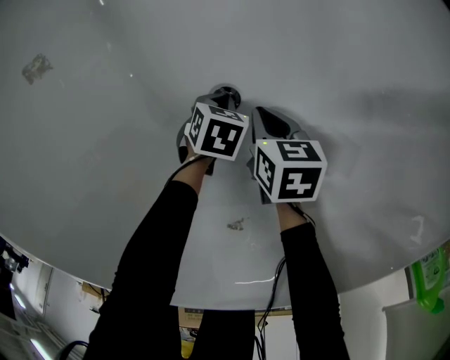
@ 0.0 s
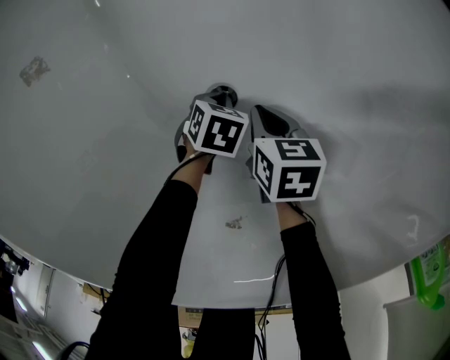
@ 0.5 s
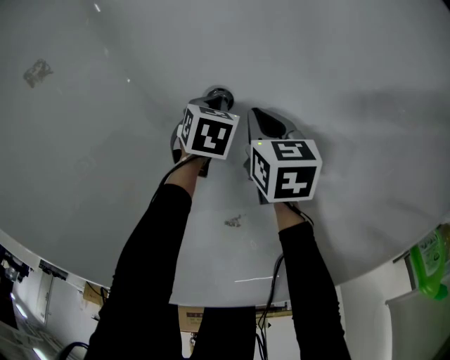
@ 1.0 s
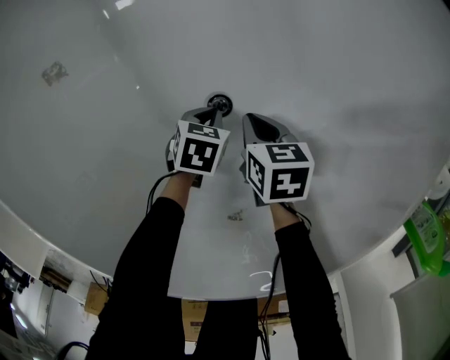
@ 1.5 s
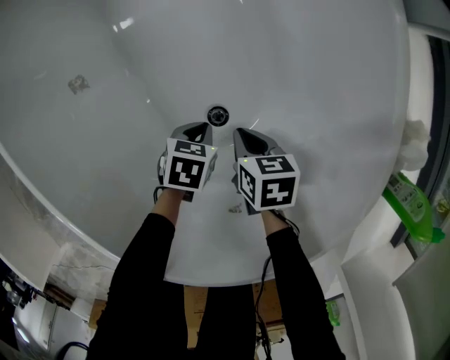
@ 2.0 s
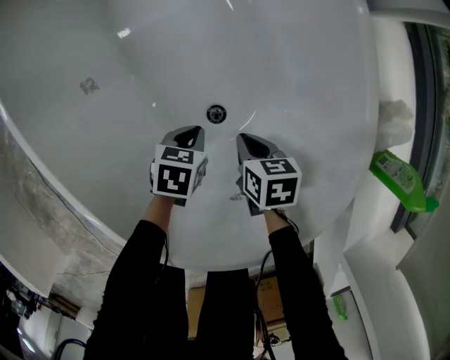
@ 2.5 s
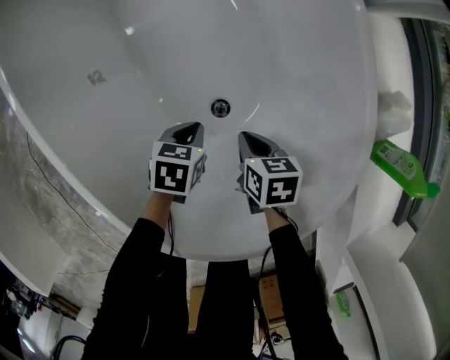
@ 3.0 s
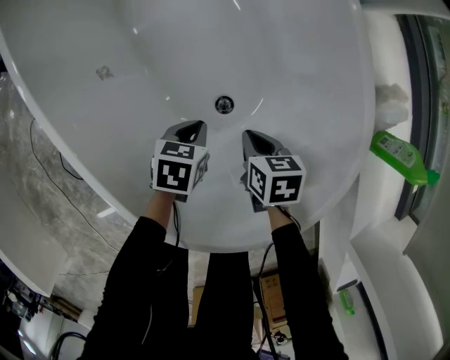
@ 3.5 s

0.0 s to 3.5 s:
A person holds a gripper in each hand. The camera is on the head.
0.0 to 2.0 s: The two grippers go some 15 cm upward.
2.0 to 3.5 s: Both grippers travel together upward, approximately 10 cm.

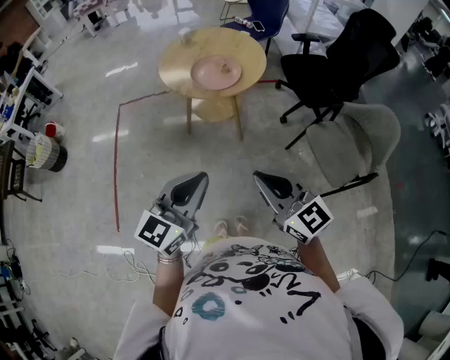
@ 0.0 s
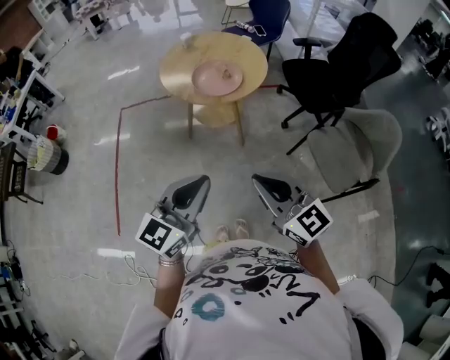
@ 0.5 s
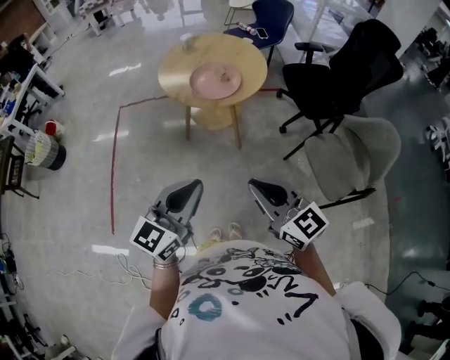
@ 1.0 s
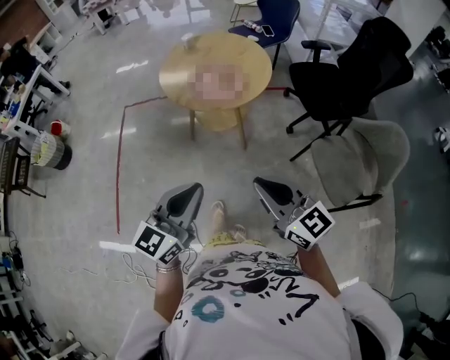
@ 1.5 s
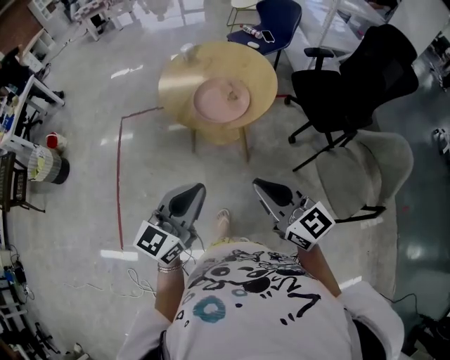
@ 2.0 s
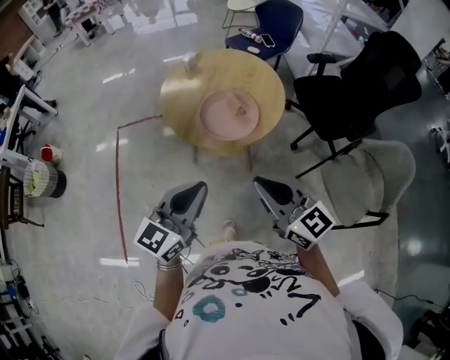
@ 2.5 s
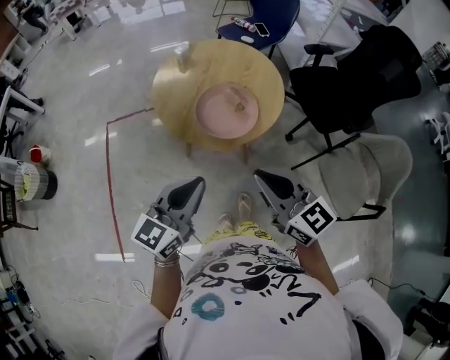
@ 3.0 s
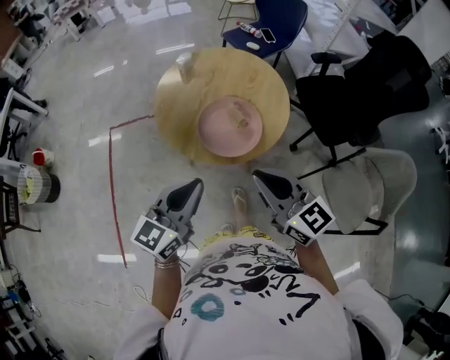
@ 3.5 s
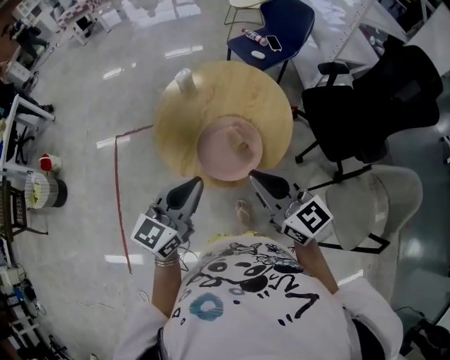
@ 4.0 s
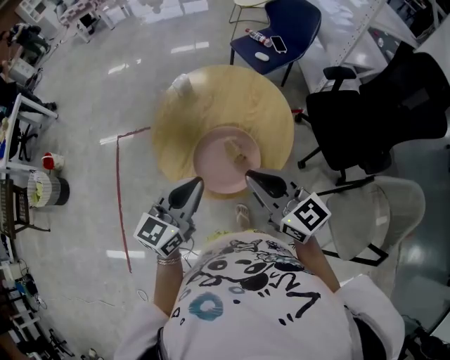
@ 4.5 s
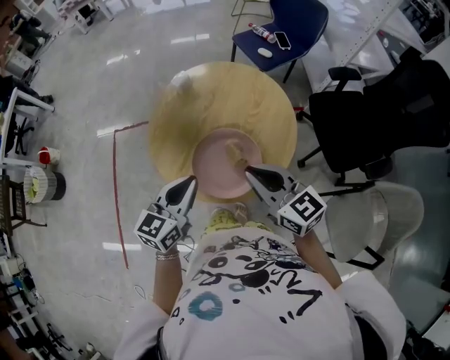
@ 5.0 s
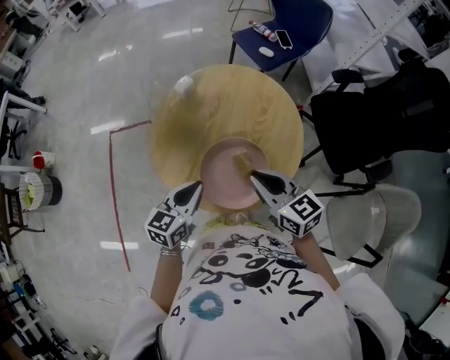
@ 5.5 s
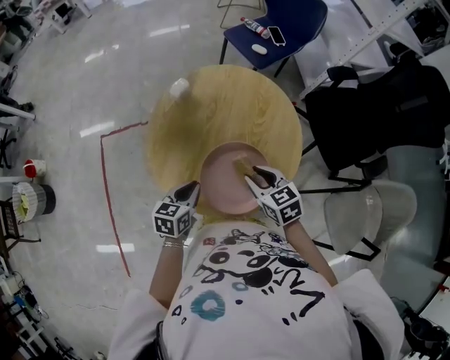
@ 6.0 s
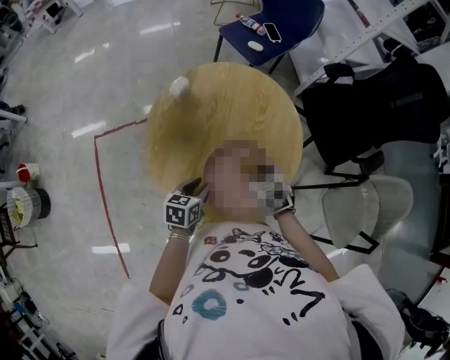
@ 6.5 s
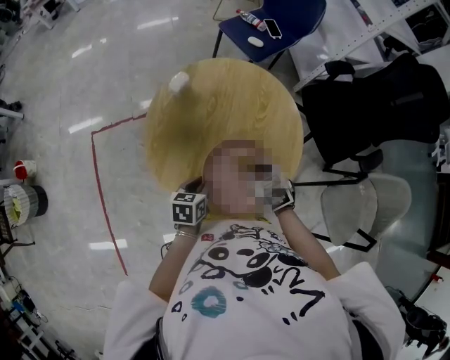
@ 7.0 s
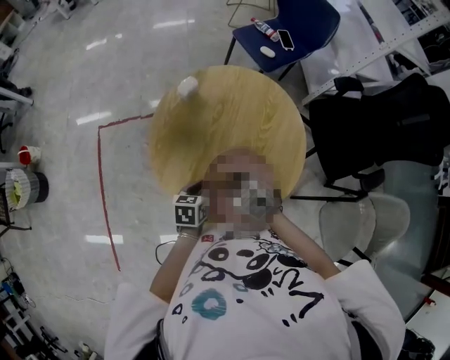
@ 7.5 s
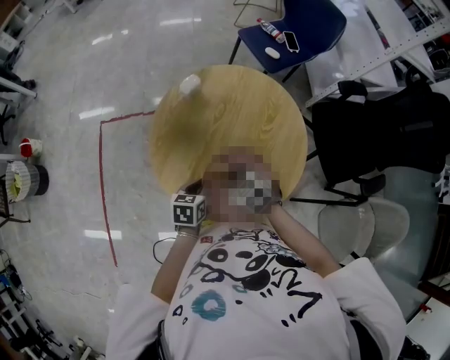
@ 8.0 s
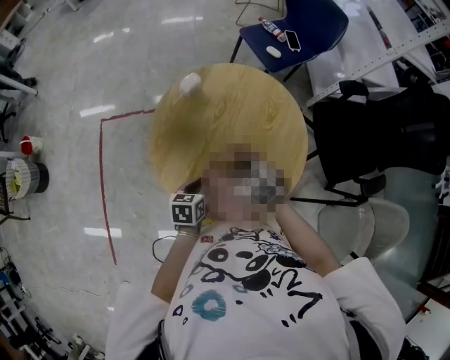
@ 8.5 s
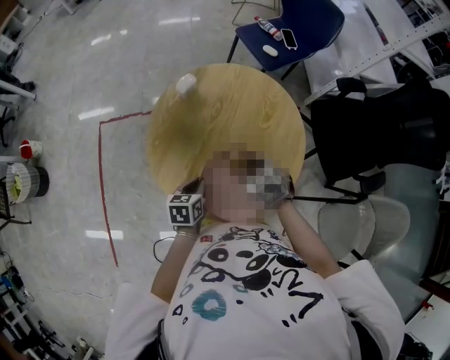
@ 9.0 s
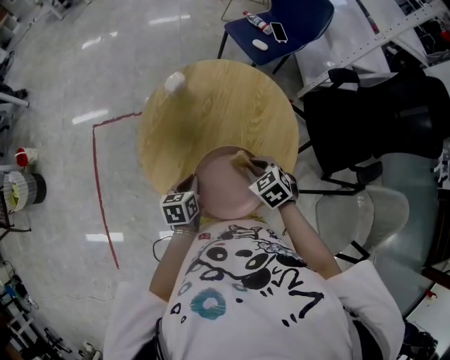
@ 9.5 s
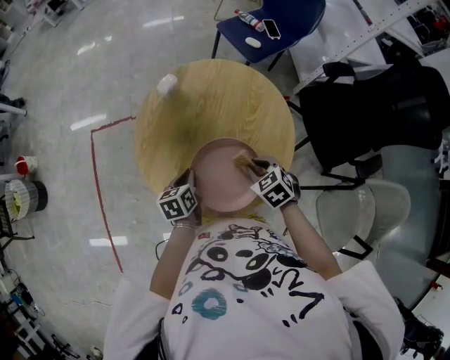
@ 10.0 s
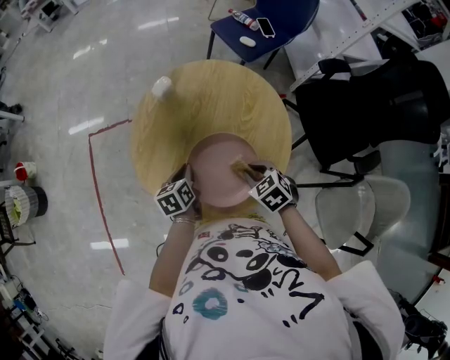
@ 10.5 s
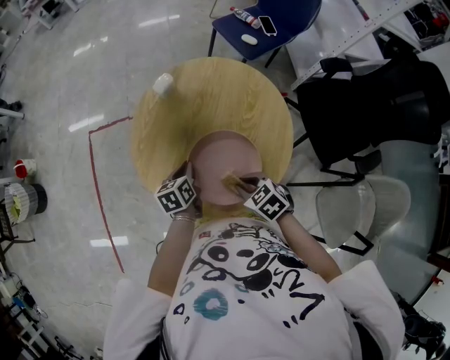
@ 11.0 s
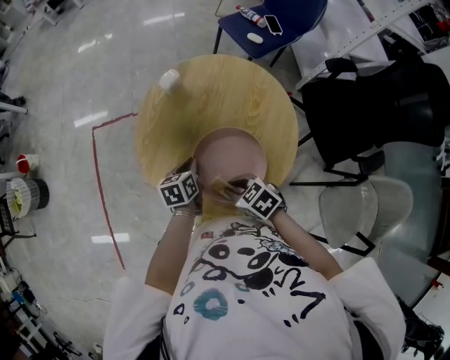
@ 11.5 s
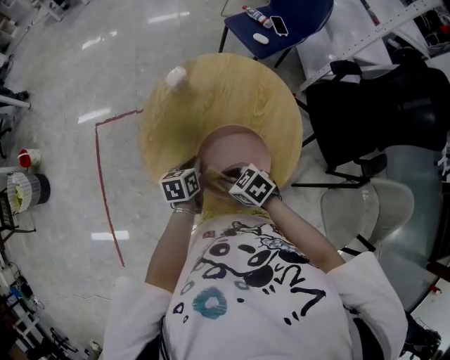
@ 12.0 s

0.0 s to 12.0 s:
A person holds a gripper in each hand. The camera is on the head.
0.0 to 2.0 s: The two grippers go approximately 15 cm forward.
2.0 to 4.0 s: The two grippers go about 30 cm forward.
4.0 to 6.0 s: Both grippers move downward and forward, some 25 cm. The left gripper points its fingers roughly 30 degrees further downward; the right gripper tilts its fingers some 40 degrees downward.
6.0 to 8.0 s: The right gripper ends up about 10 cm from where it was, and changes its angle by about 30 degrees. The left gripper moves downward, some 5 cm, and opens and closes again.
8.0 to 10.0 s: The right gripper goes roughly 10 cm to the right.
10.0 to 12.0 s: The right gripper moves to the left, approximately 15 cm, and turns by some 20 degrees.

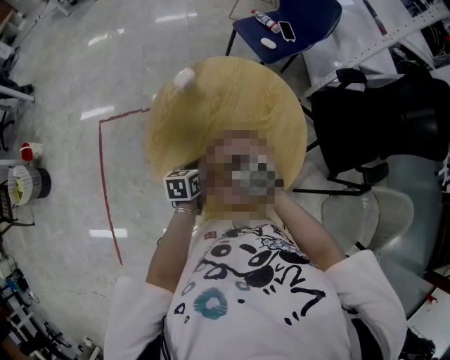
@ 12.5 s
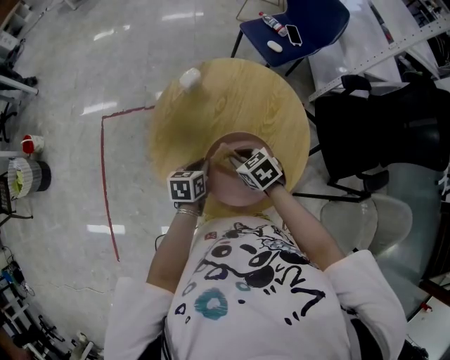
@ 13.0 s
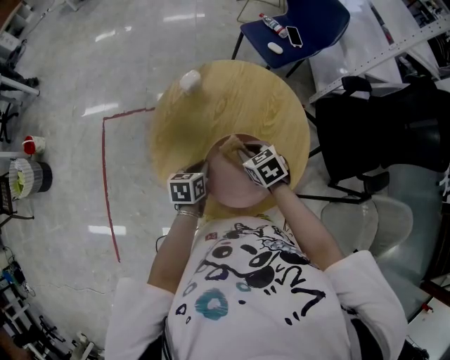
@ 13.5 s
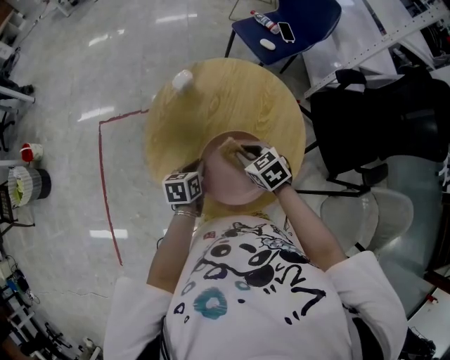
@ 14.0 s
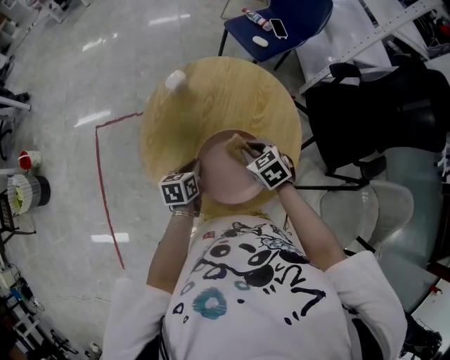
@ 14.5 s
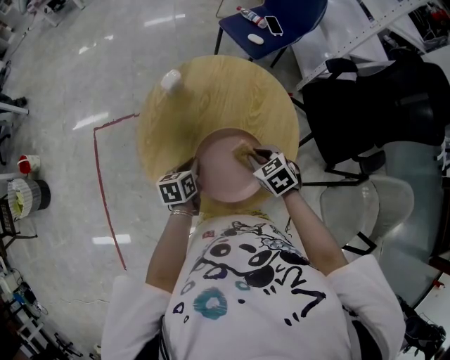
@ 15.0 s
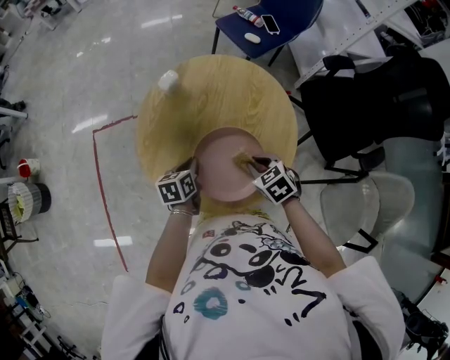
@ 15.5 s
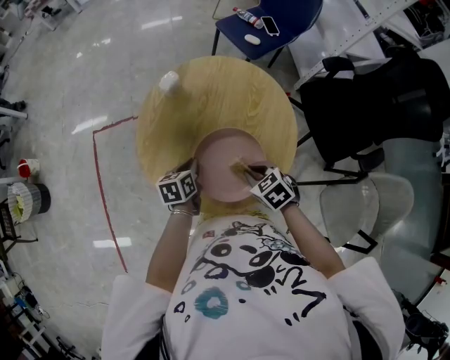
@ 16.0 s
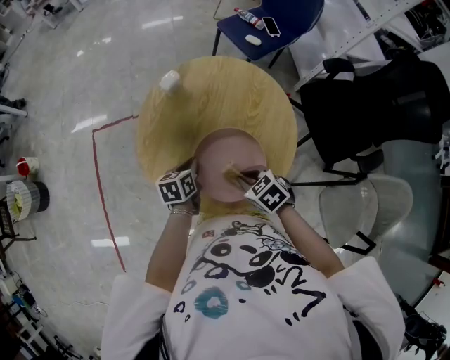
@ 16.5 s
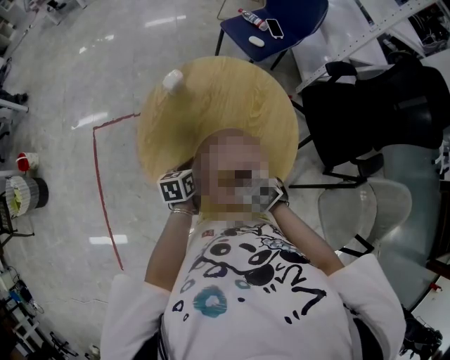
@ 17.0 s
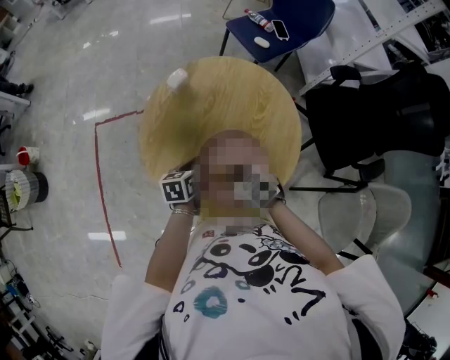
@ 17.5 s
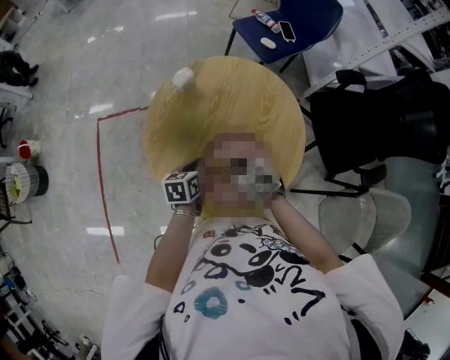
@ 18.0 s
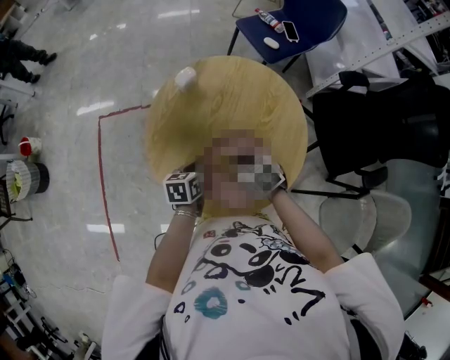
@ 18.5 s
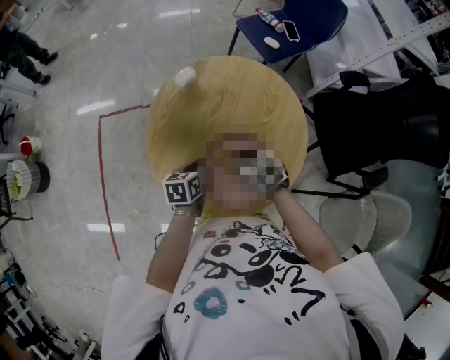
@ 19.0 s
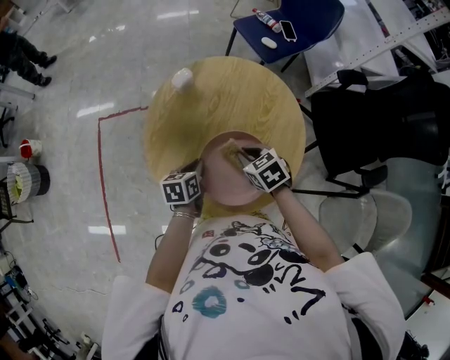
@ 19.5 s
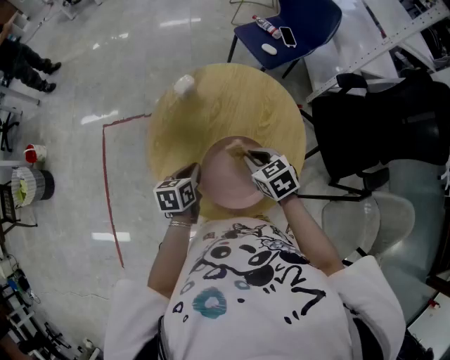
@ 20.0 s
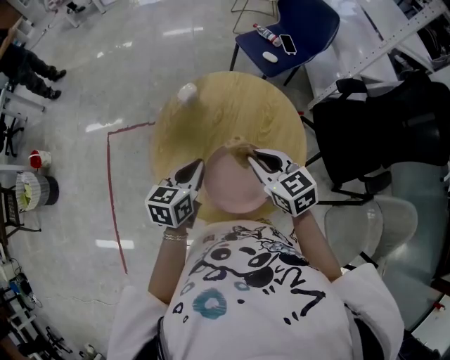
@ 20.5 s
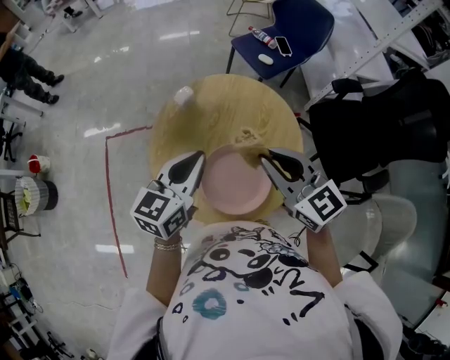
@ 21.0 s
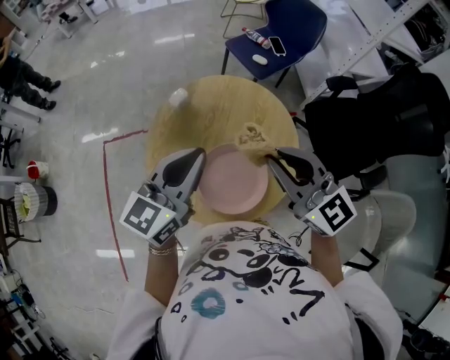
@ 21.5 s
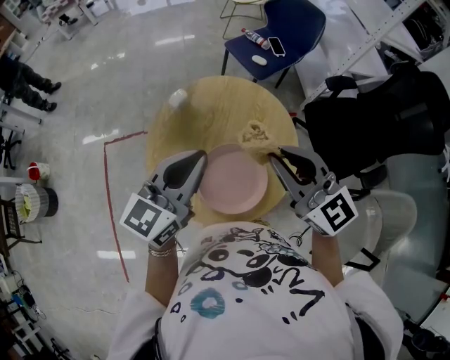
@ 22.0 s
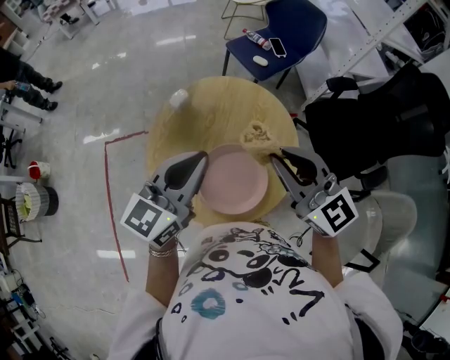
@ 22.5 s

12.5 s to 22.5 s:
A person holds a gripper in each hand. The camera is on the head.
12.5 to 14.5 s: The right gripper shifts approximately 10 cm to the right.
14.5 to 16.5 s: The right gripper travels backward by roughly 10 cm.
16.5 to 18.5 s: The right gripper is displaced forward by about 10 cm.
18.5 to 20.5 s: Both grippers travel together upward, about 15 cm. The left gripper rotates about 20 degrees, while the right gripper rotates roughly 30 degrees.
20.5 to 22.5 s: Both grippers move upward, some 15 cm. The left gripper rotates about 30 degrees. Meanwhile the right gripper turns by some 30 degrees.

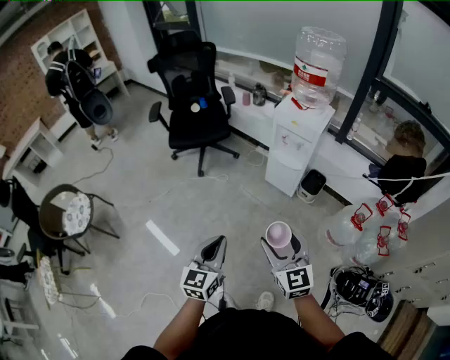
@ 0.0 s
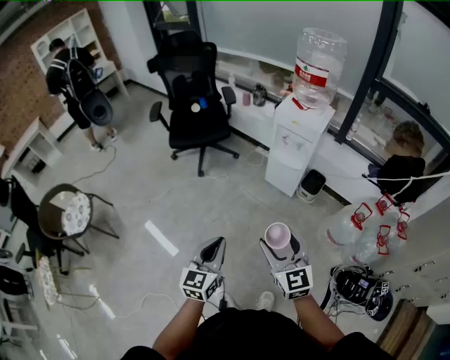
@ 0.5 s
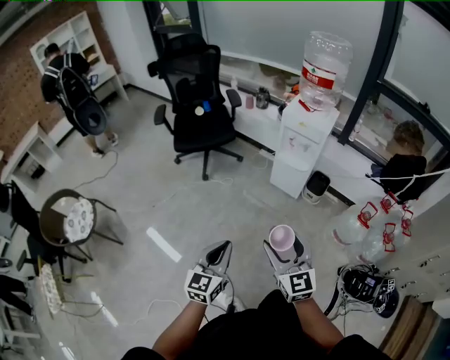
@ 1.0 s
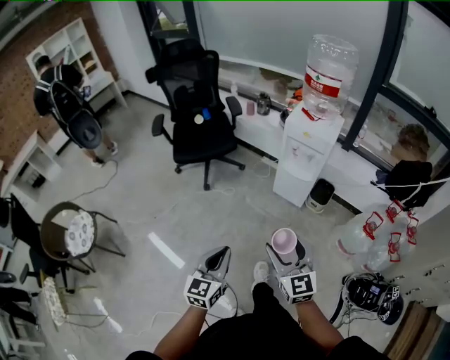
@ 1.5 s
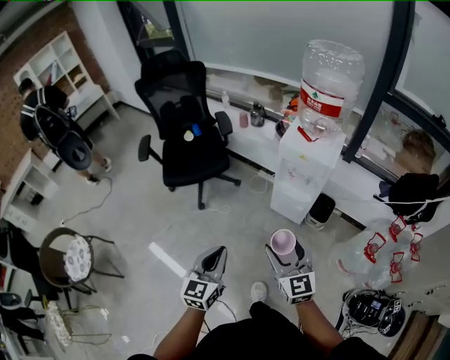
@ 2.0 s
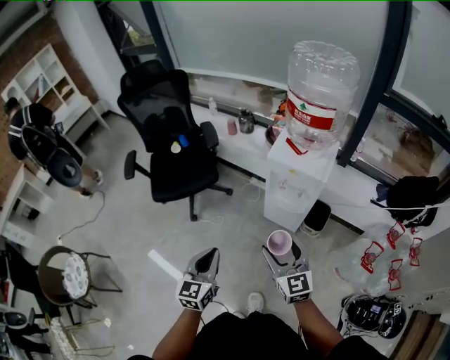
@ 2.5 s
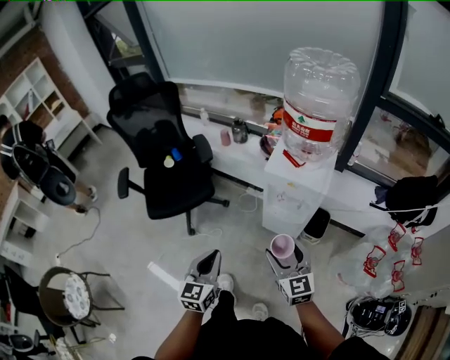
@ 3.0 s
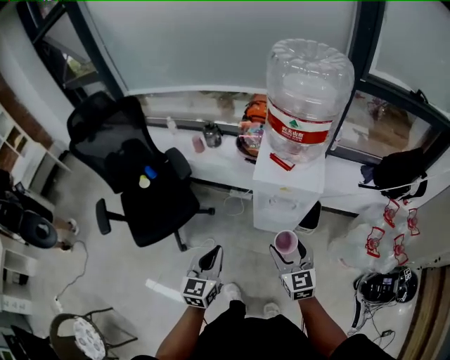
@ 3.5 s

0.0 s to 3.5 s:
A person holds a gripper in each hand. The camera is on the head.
0.0 to 2.0 s: The two grippers go approximately 20 cm forward.
2.0 to 3.5 s: Both grippers travel together forward, approximately 25 cm. The right gripper swivels approximately 20 degrees.
